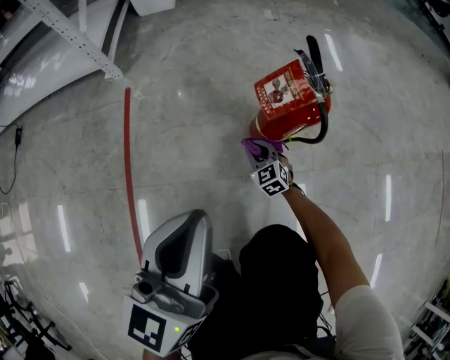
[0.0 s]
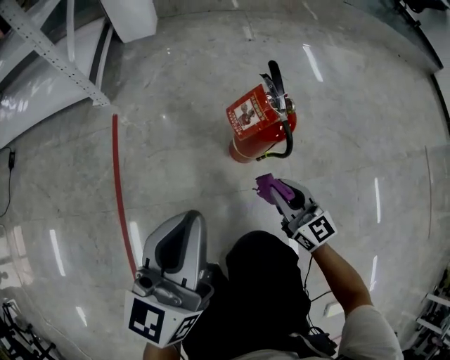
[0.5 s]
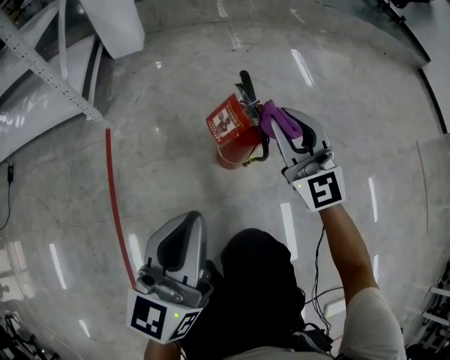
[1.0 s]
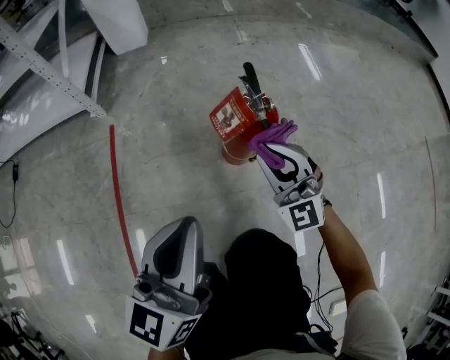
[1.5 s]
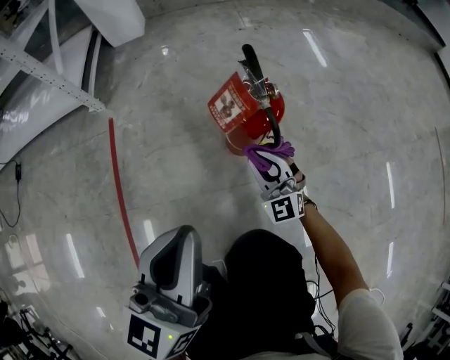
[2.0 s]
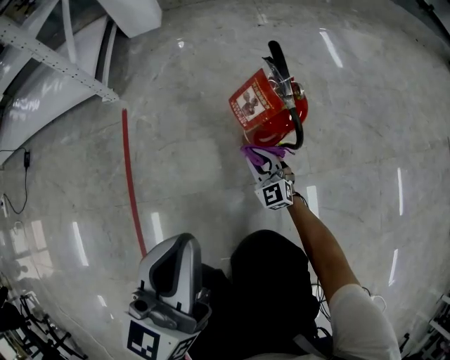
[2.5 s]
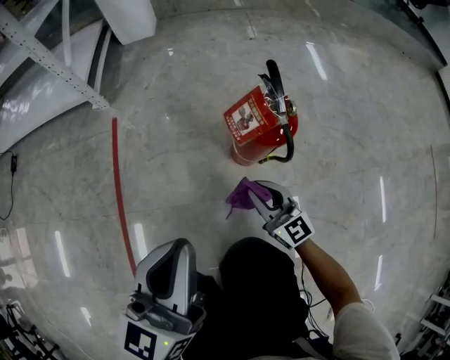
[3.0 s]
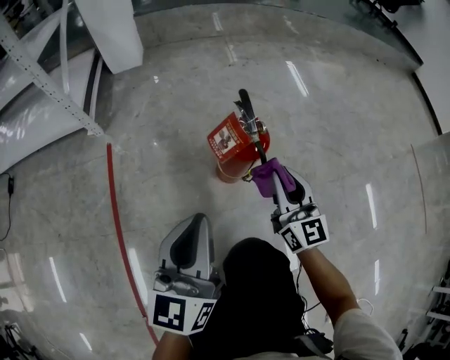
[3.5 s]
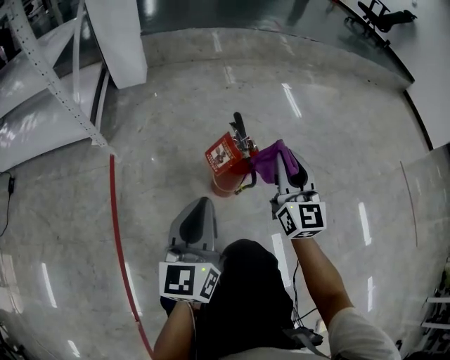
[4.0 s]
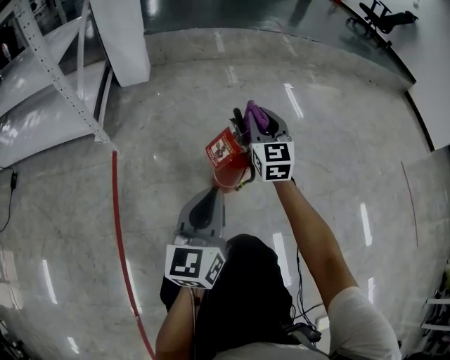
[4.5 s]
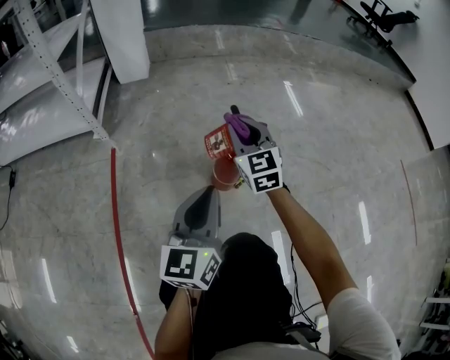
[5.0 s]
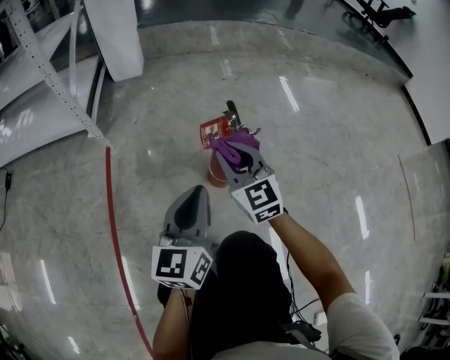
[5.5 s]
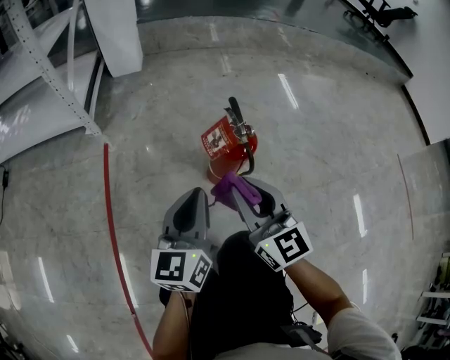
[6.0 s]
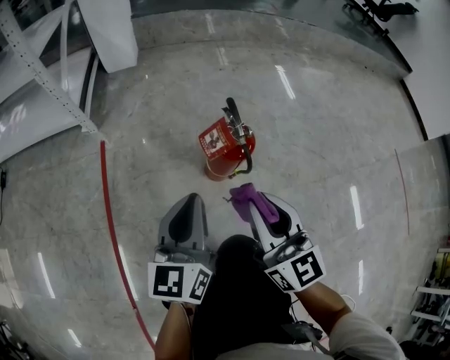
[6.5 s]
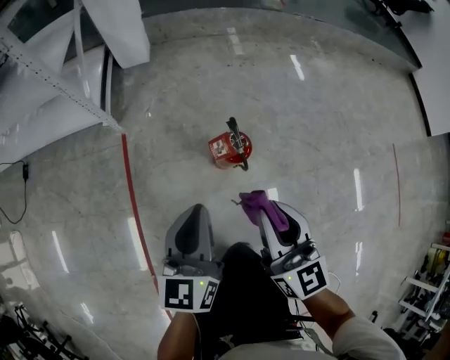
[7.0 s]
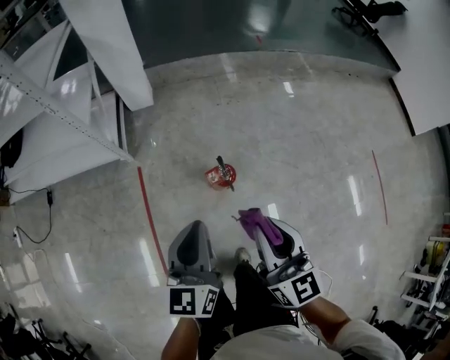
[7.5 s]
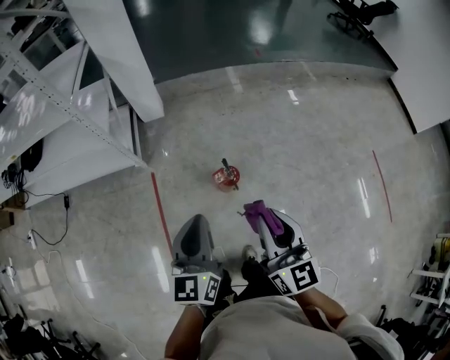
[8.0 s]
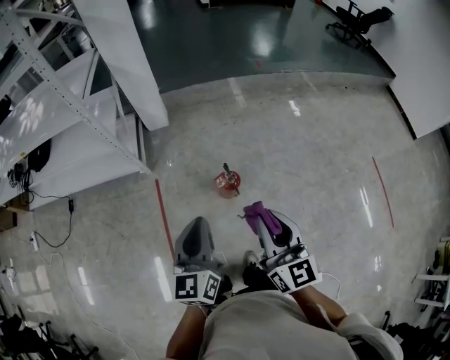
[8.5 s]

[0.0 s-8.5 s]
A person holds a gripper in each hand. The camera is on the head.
0.0 to 2.0 s: The left gripper shifts some 5 cm to the right, while the right gripper travels upward and to the right by approximately 20 cm, and turns by about 30 degrees.
2.0 to 4.0 s: The left gripper goes approximately 5 cm forward. The right gripper moves upward, some 25 cm, and changes its angle by about 40 degrees.
4.0 to 6.5 s: The right gripper shifts some 15 cm backward and to the left.
6.5 to 8.5 s: Both grippers move upward, approximately 60 cm.

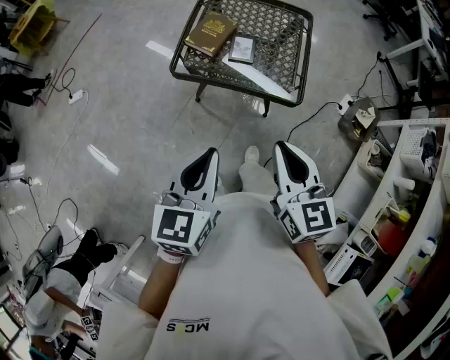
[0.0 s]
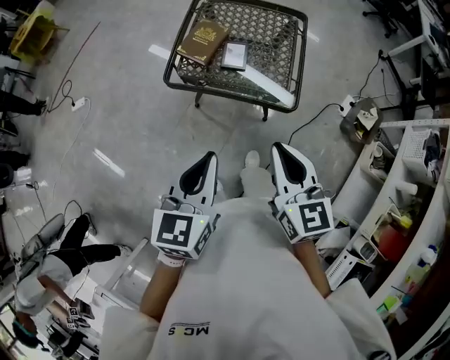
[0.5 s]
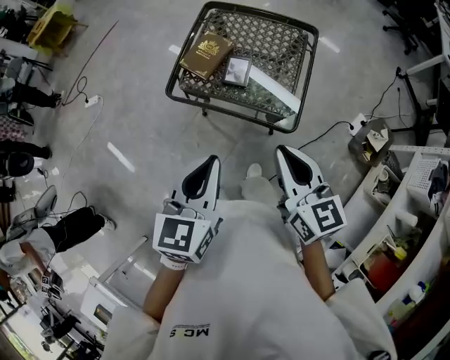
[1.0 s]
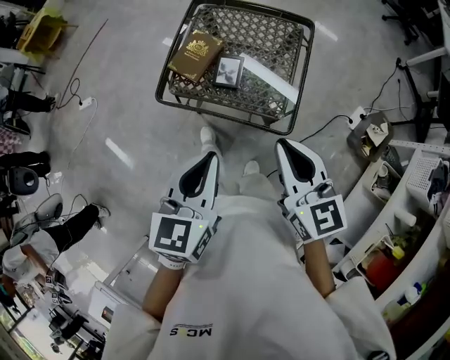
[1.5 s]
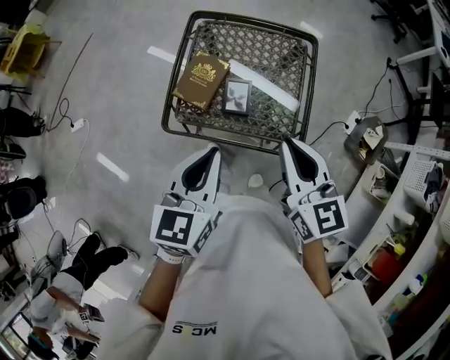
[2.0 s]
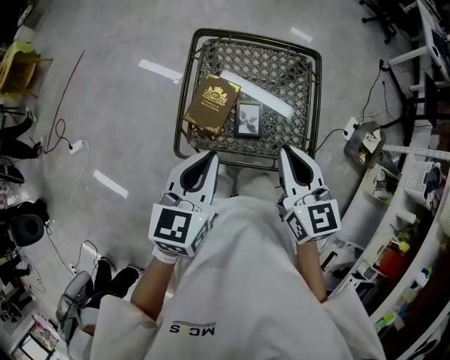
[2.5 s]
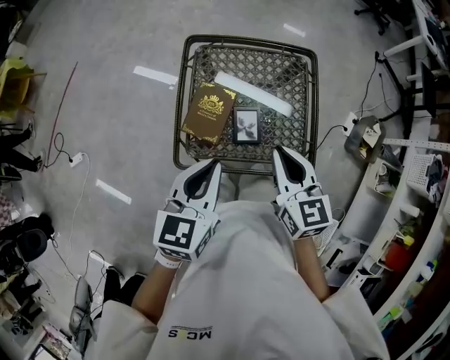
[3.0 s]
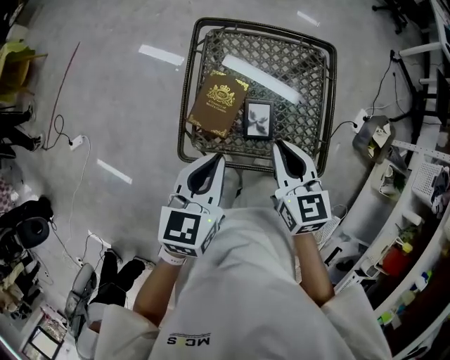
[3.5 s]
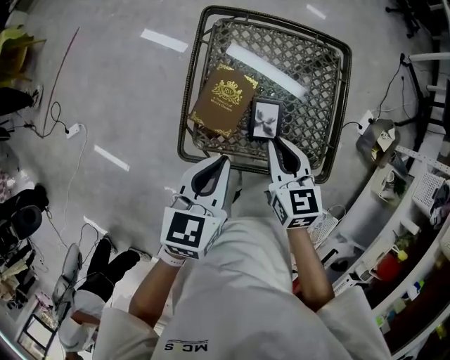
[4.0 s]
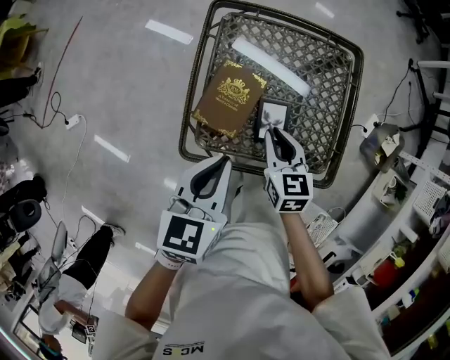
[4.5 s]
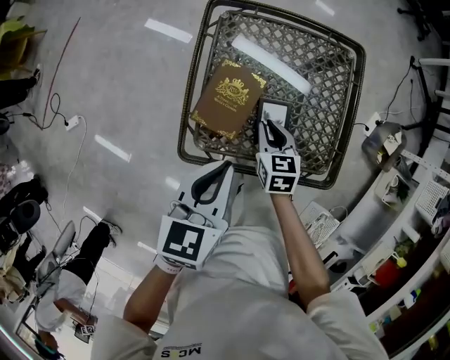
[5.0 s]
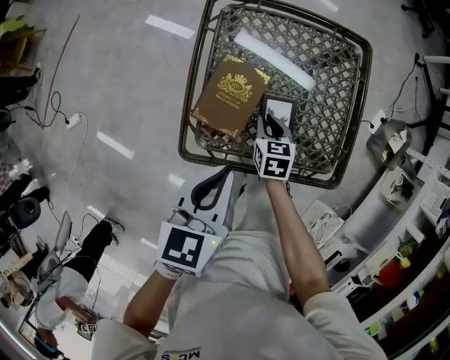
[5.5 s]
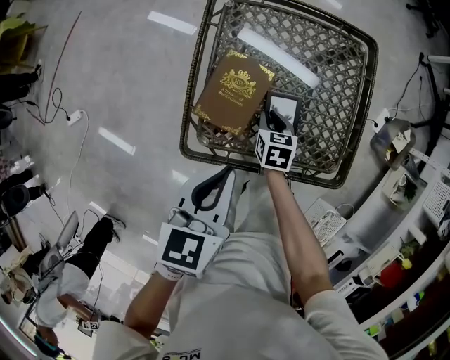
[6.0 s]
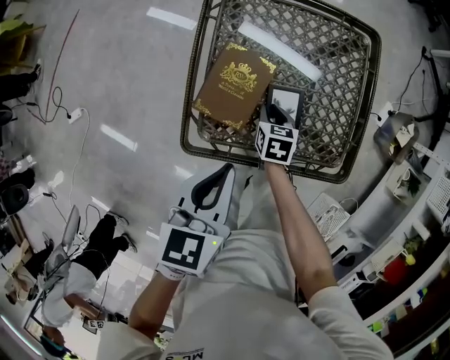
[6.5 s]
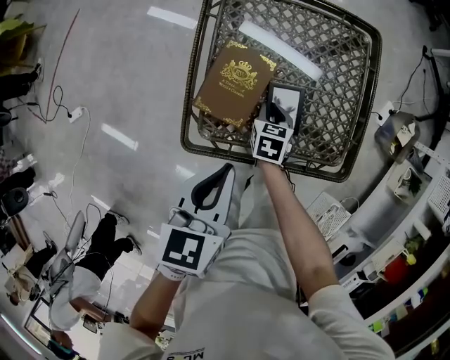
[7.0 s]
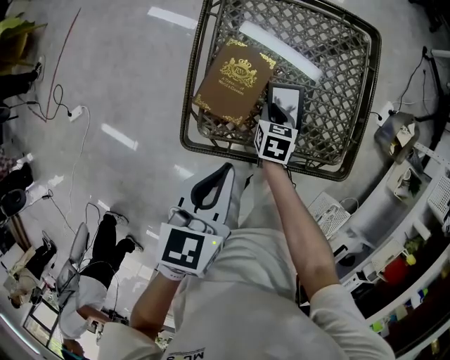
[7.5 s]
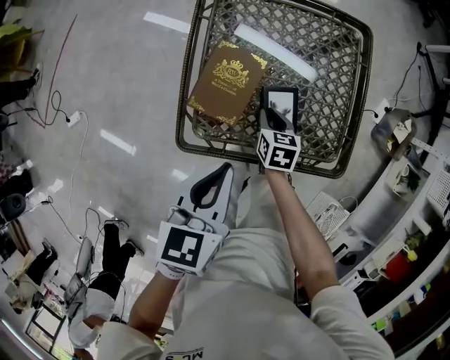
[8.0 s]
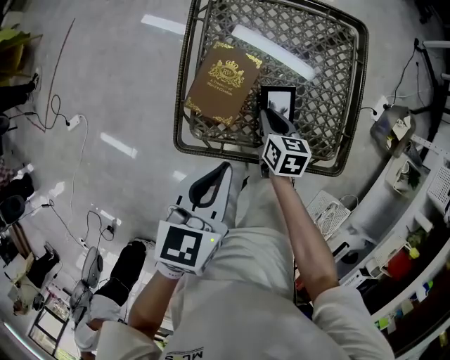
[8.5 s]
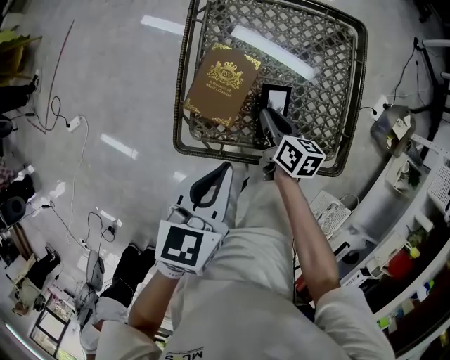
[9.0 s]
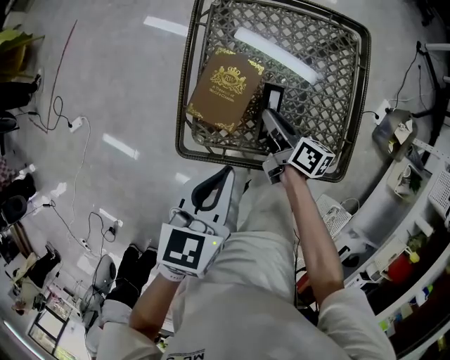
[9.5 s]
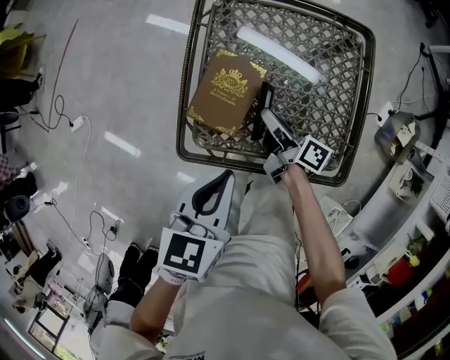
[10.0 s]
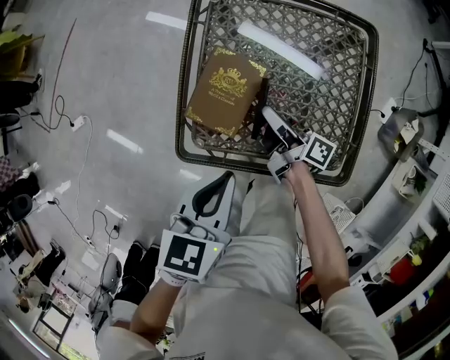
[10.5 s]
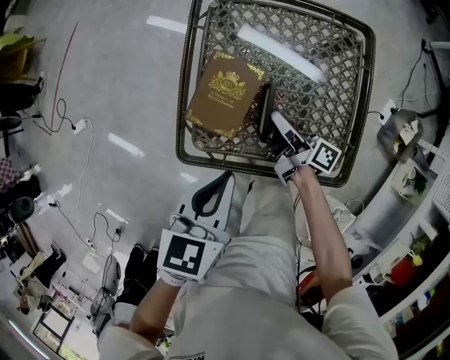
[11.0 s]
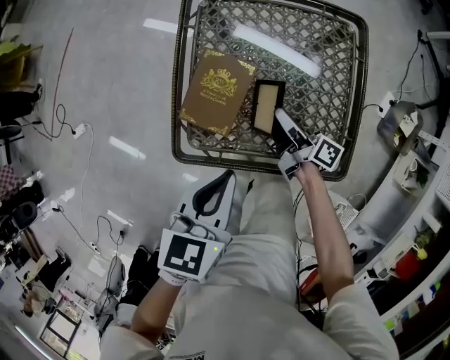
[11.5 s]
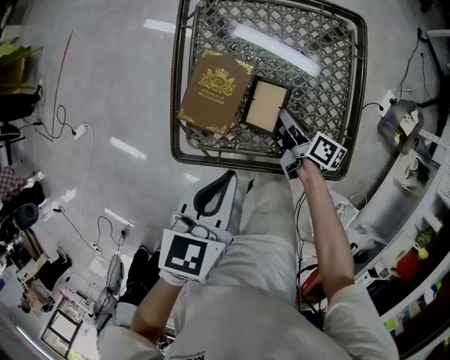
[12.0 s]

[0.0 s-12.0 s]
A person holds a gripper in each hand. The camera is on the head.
0.0 to 2.0 s: The grippers both shift forward by roughly 25 cm.
2.0 to 4.0 s: The left gripper shifts approximately 20 cm forward, downward and to the left; the right gripper travels downward, to the left and forward by about 25 cm.
4.0 to 6.0 s: The right gripper is displaced downward by approximately 25 cm, and swivels roughly 20 degrees.
6.0 to 8.0 s: The grippers stay close to where they were, moving slightly.
8.0 to 10.0 s: The right gripper heads upward, covering about 5 cm, and points its fingers some 40 degrees further upward.
10.0 to 12.0 s: The right gripper is displaced to the right and downward by about 10 cm.

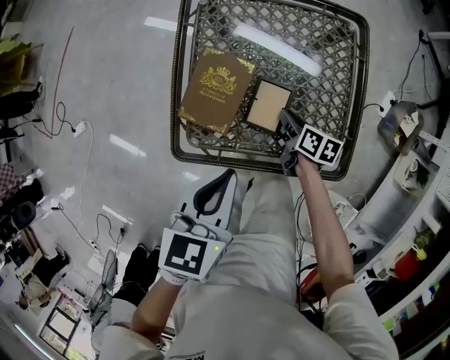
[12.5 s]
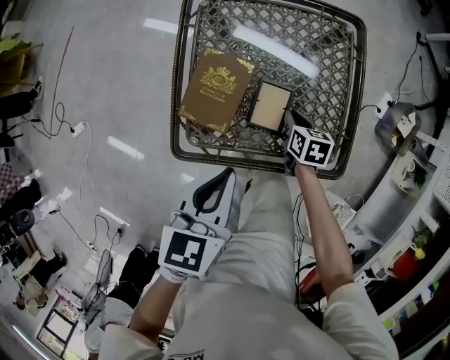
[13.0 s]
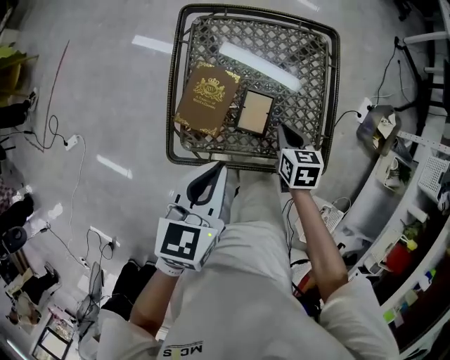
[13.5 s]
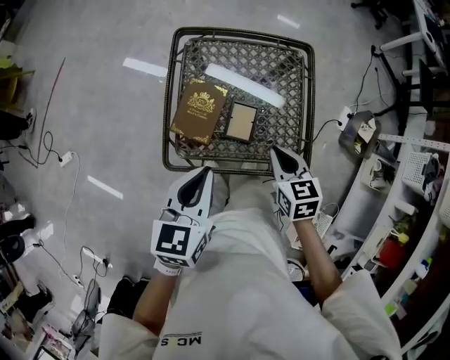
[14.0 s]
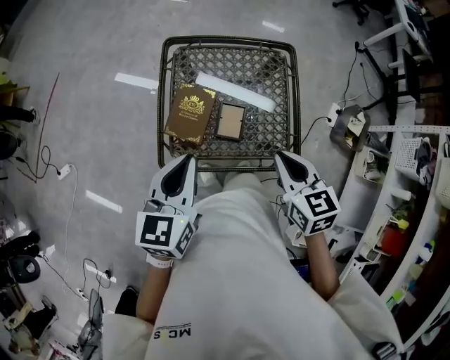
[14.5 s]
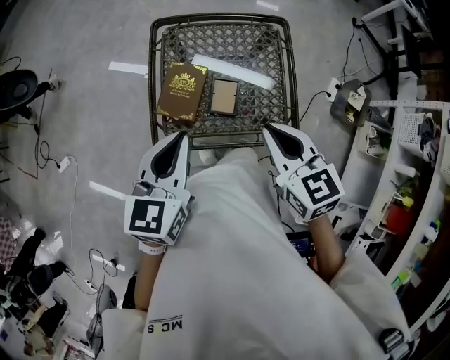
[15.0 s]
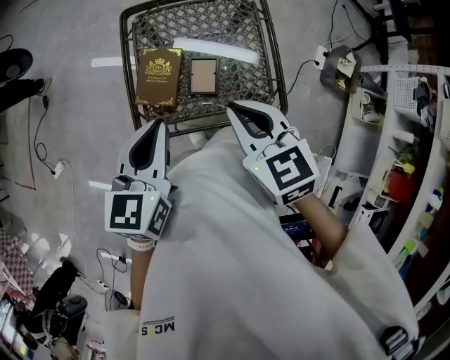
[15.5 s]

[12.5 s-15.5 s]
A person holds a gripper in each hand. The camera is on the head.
12.5 to 14.0 s: The right gripper goes about 25 cm upward, and twists about 40 degrees counterclockwise, seen from behind. The left gripper shifts some 10 cm upward.
14.0 to 15.5 s: The right gripper goes approximately 15 cm upward.

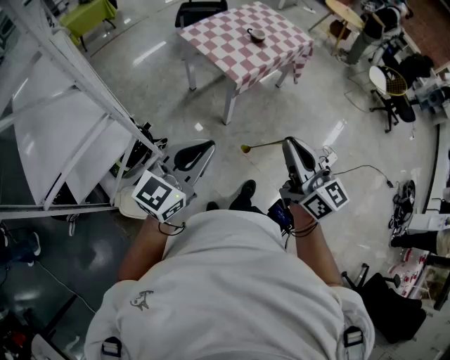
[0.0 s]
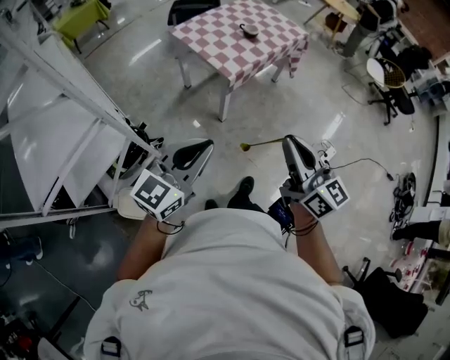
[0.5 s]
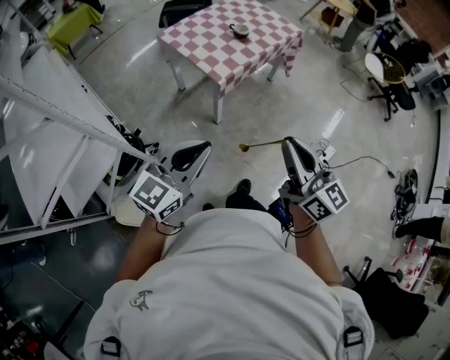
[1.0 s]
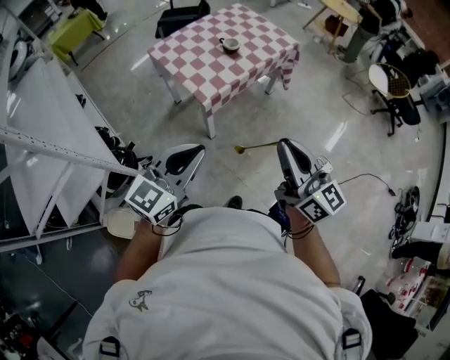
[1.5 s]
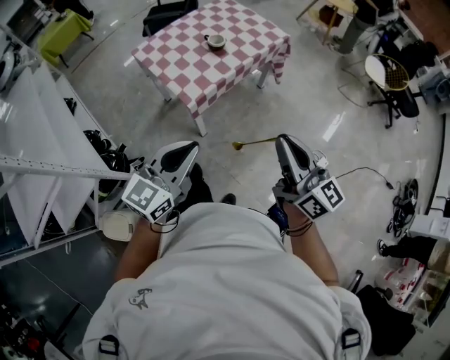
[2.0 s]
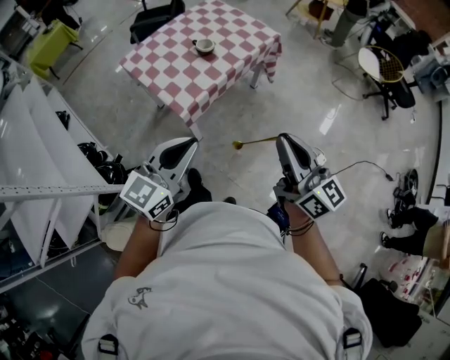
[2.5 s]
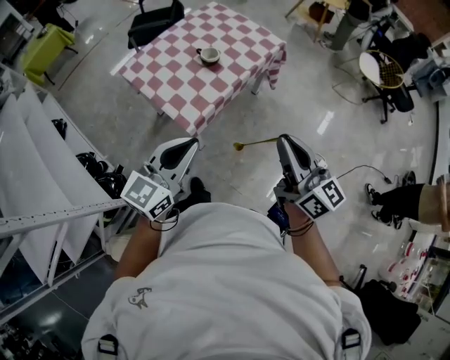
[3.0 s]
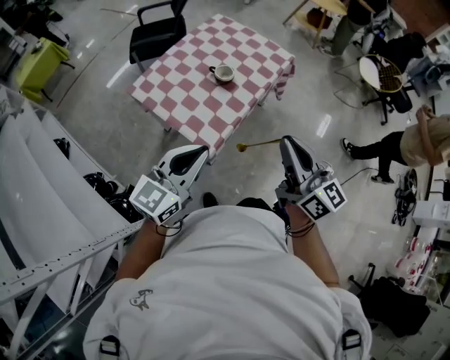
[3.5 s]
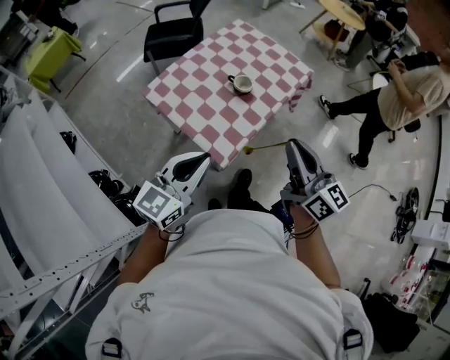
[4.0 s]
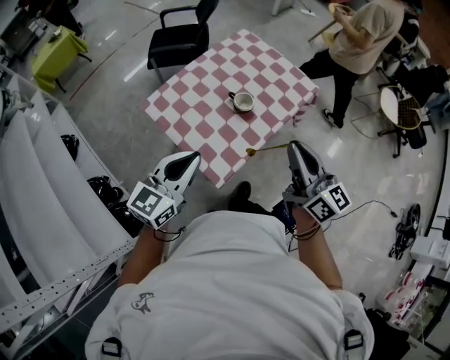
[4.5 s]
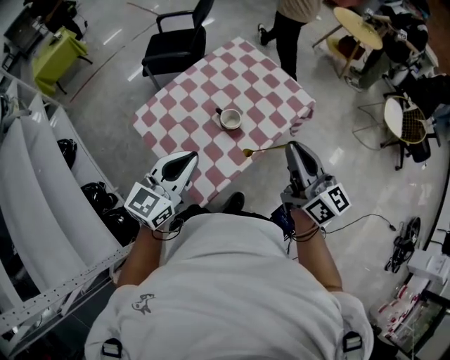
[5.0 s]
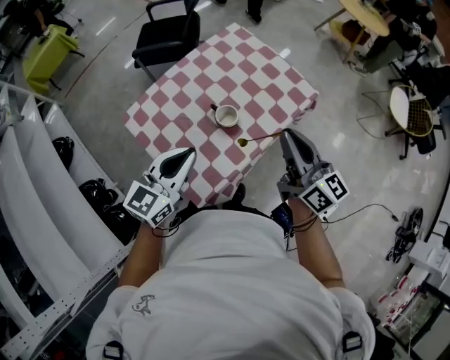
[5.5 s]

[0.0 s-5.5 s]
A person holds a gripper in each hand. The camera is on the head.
0.0 to 2.0 s: Both grippers move forward and to the right, about 30 cm.
2.0 to 3.5 s: Both grippers travel together forward and to the left, about 25 cm.
3.5 to 5.5 s: Both grippers travel together forward, about 30 cm.
